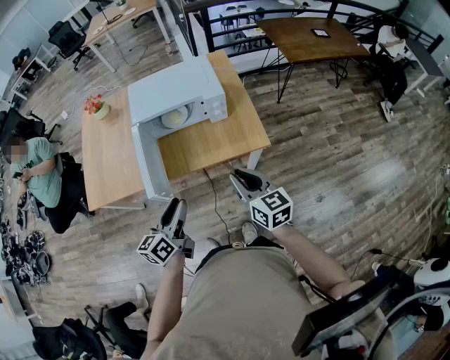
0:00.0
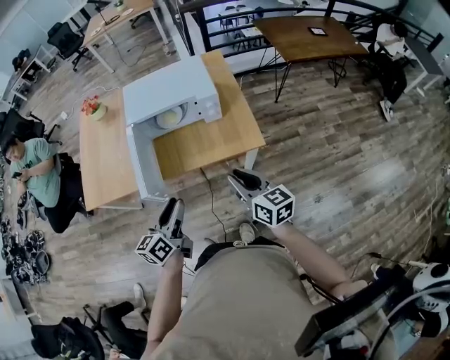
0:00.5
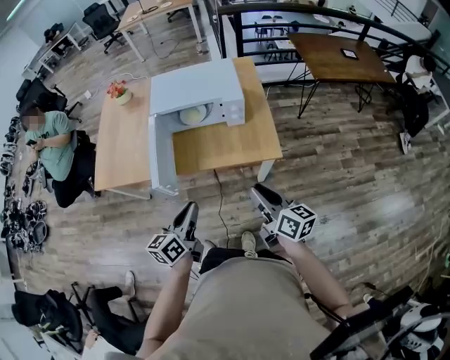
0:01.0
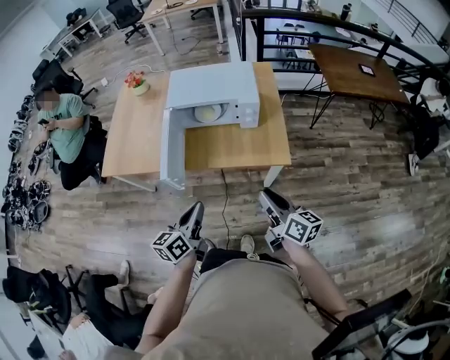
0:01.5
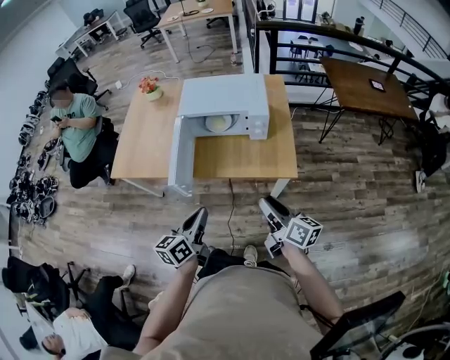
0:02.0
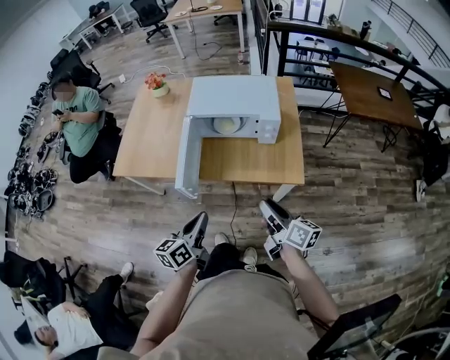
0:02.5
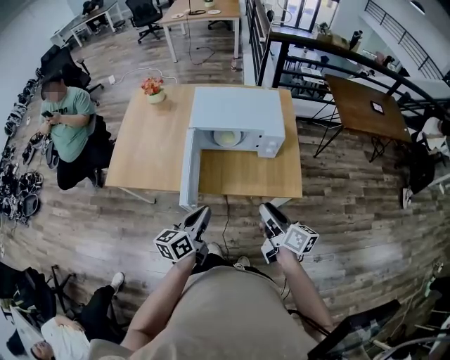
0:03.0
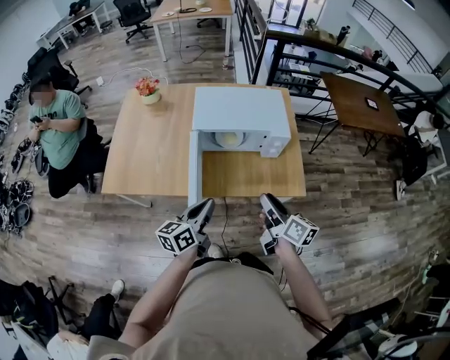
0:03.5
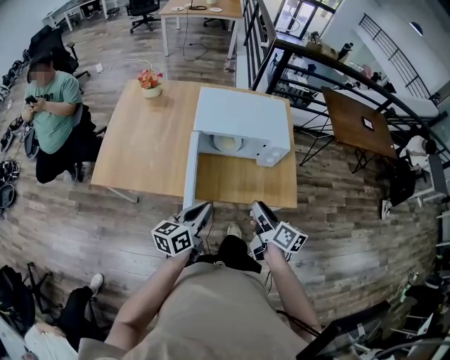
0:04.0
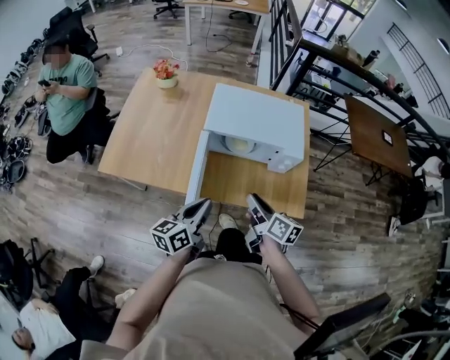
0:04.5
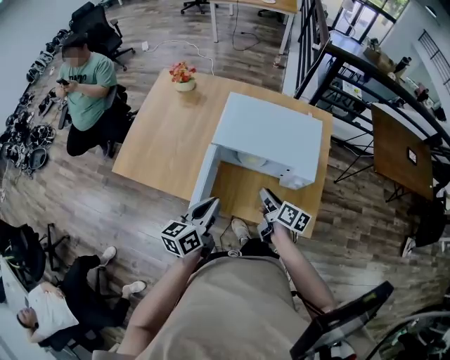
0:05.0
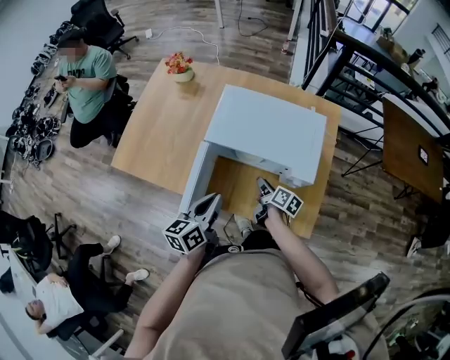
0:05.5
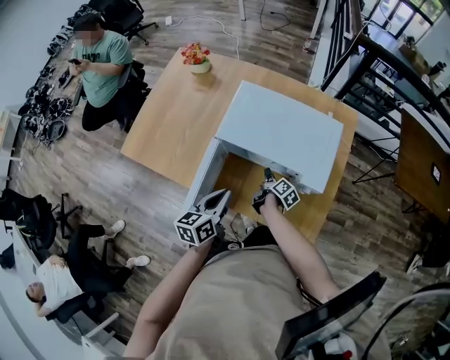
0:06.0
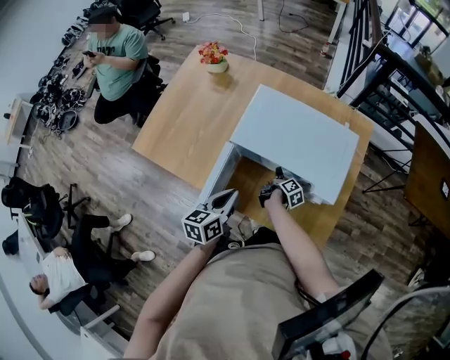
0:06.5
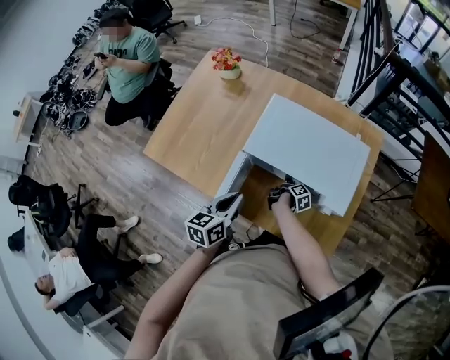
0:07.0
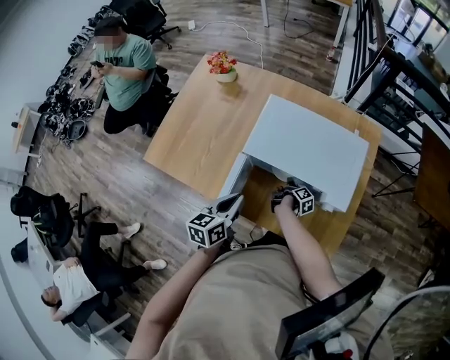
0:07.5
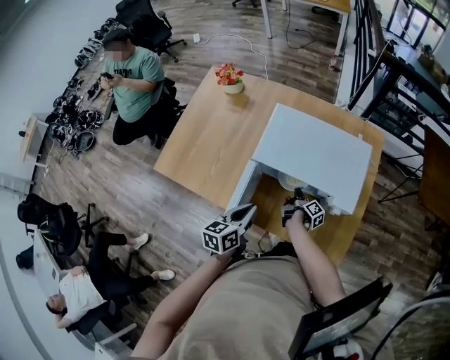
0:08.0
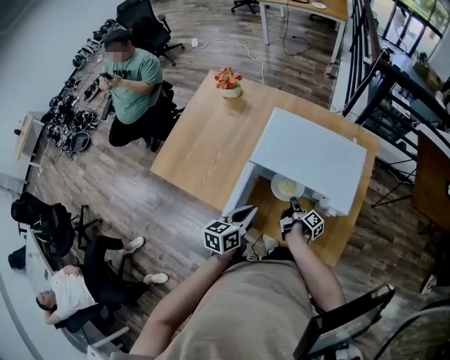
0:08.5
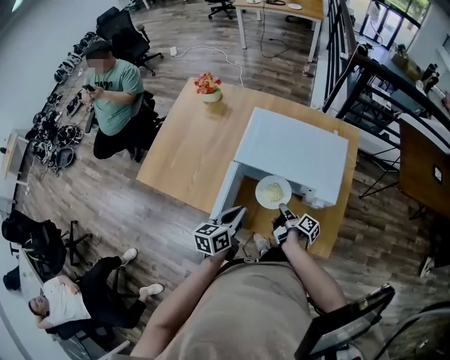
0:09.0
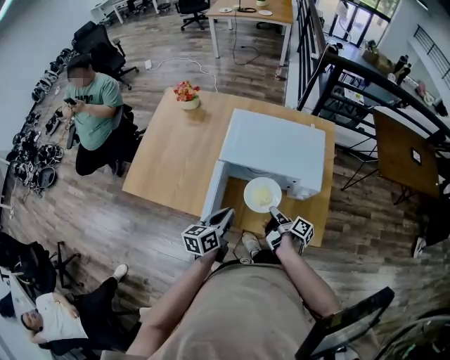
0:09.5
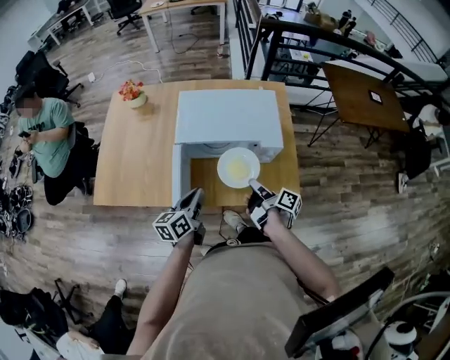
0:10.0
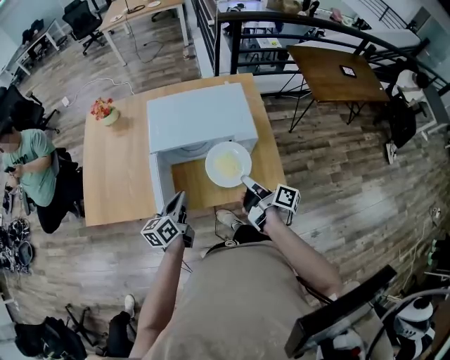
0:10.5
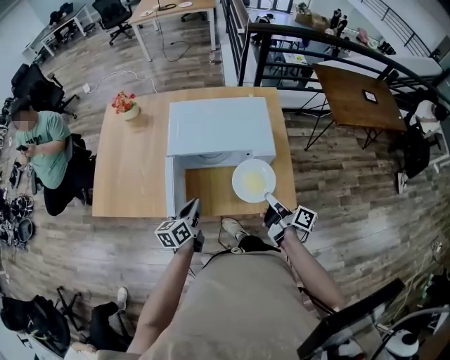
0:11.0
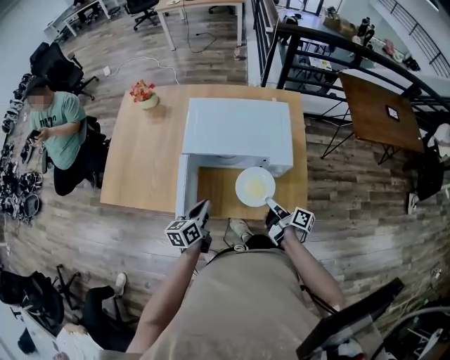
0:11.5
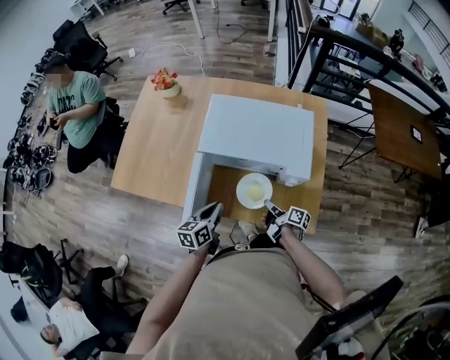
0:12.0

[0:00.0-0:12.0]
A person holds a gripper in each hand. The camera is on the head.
0:00.0 to 0:02.0: The right gripper moves roughly 5 cm, and swivels about 30 degrees; the left gripper moves approximately 5 cm, and closes its fingers.
0:02.0 to 0:04.0: The left gripper is displaced forward and to the left by roughly 20 cm. The right gripper travels to the left and forward by approximately 20 cm.
0:04.0 to 0:06.0: The left gripper moves forward, about 15 cm, and rotates about 30 degrees, while the right gripper moves forward and downward, about 40 cm, and swivels some 30 degrees.
0:06.0 to 0:08.0: The right gripper swivels roughly 20 degrees, and closes.
0:08.0 to 0:10.0: The left gripper goes about 5 cm backward, while the right gripper travels upward and backward by approximately 25 cm.
0:10.0 to 0:12.0: The right gripper goes some 15 cm downward, and rotates roughly 20 degrees, while the left gripper is displaced downward by about 10 cm.

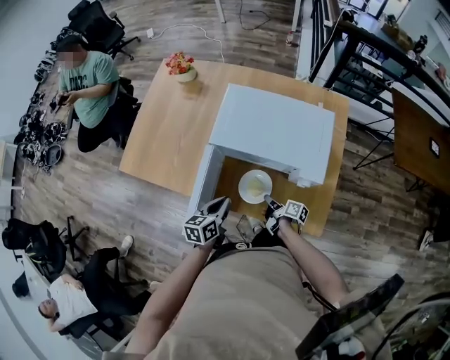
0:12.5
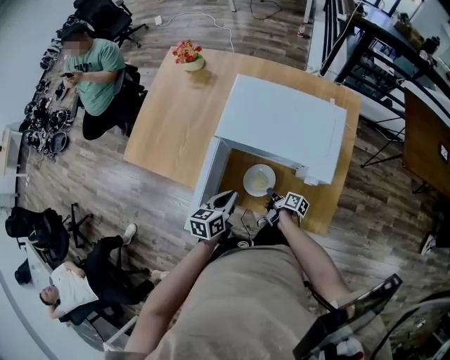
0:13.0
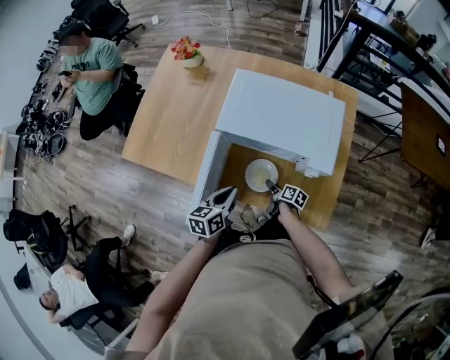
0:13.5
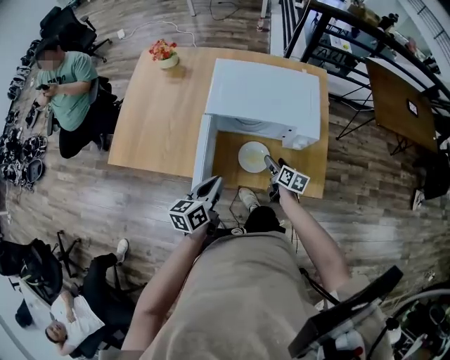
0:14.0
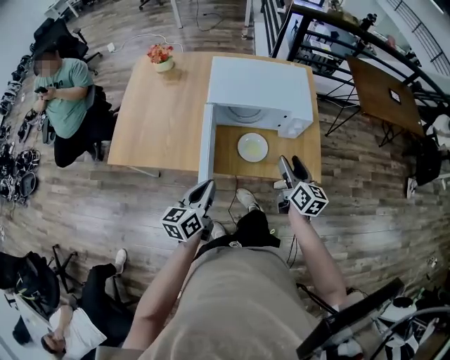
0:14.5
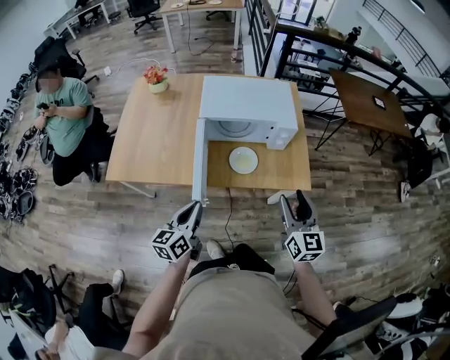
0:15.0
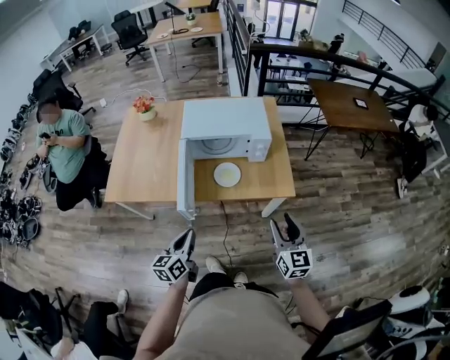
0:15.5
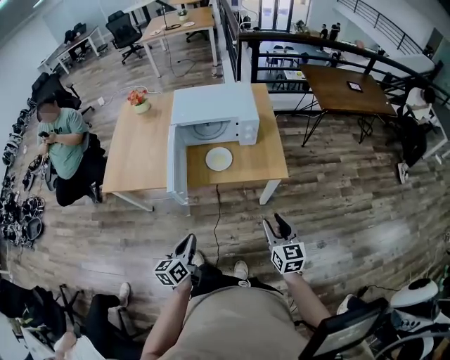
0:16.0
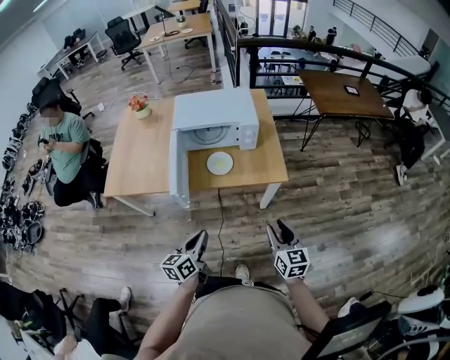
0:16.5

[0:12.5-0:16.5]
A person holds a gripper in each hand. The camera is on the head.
0:12.5 to 0:14.5: The right gripper travels upward and backward by about 30 cm, swivels some 60 degrees, and opens up; the left gripper travels backward, to the left and upward by about 20 cm.
0:14.5 to 0:16.5: Both grippers travel together backward and to the right, some 30 cm.

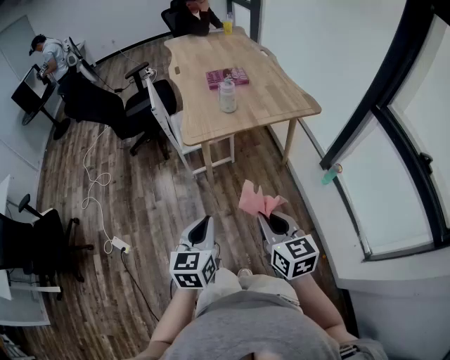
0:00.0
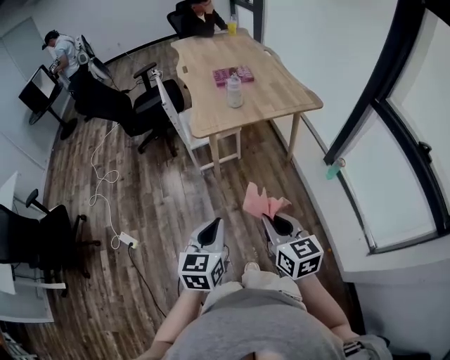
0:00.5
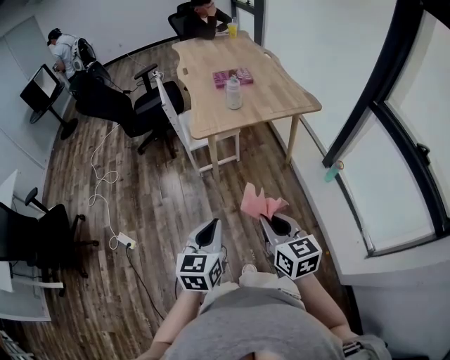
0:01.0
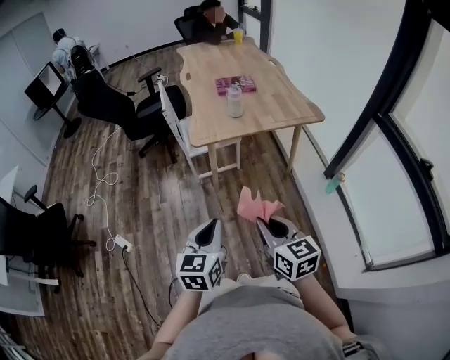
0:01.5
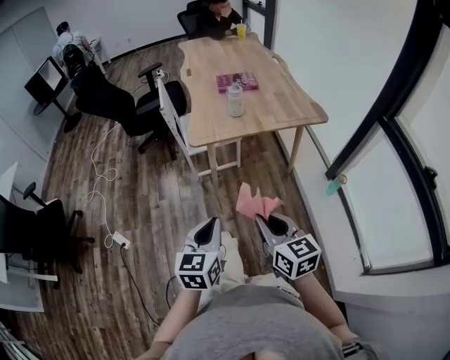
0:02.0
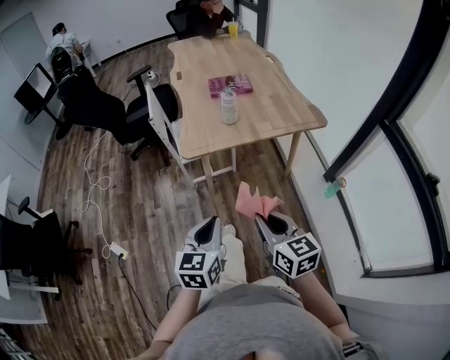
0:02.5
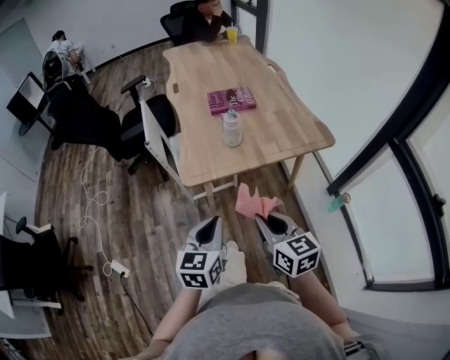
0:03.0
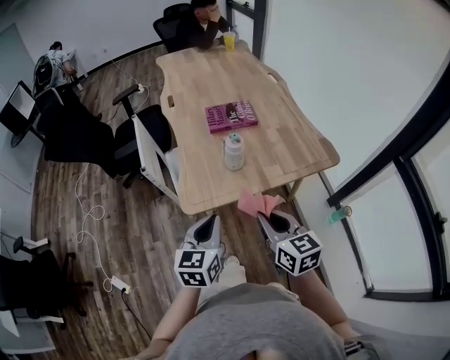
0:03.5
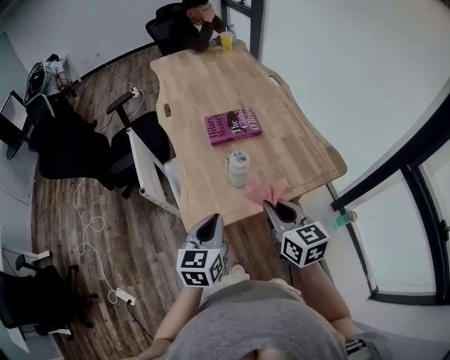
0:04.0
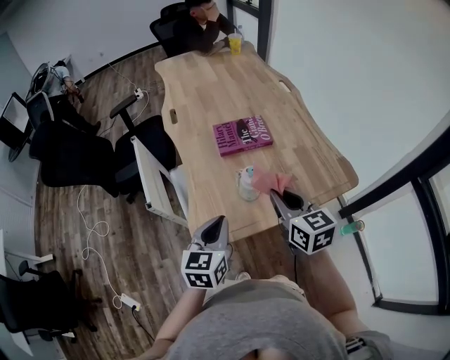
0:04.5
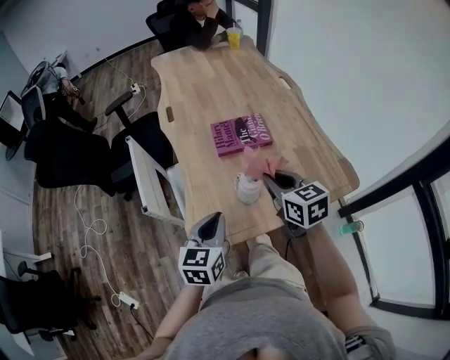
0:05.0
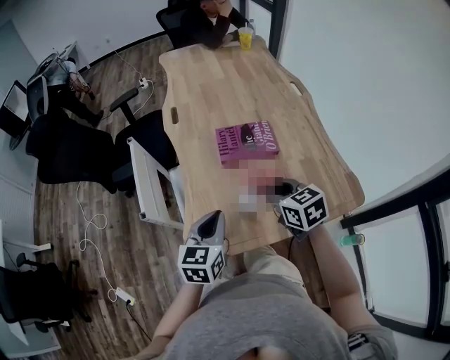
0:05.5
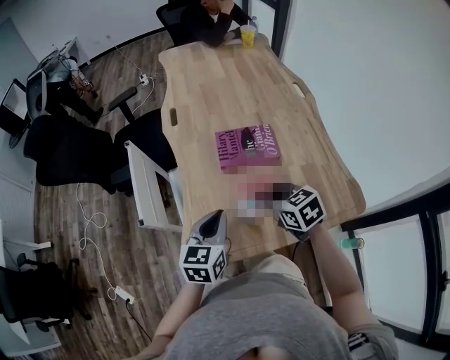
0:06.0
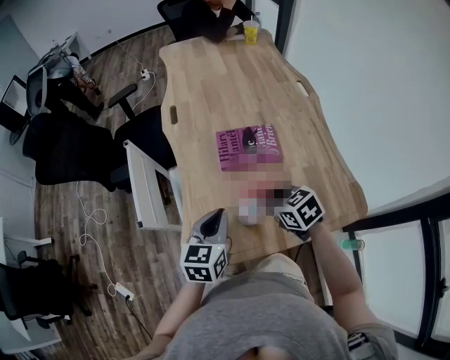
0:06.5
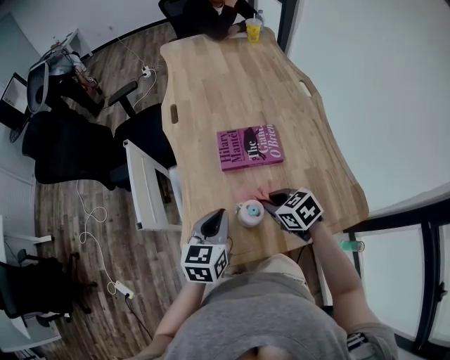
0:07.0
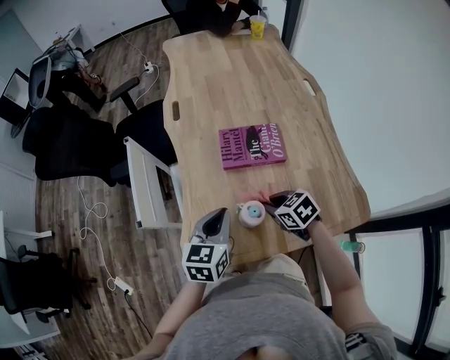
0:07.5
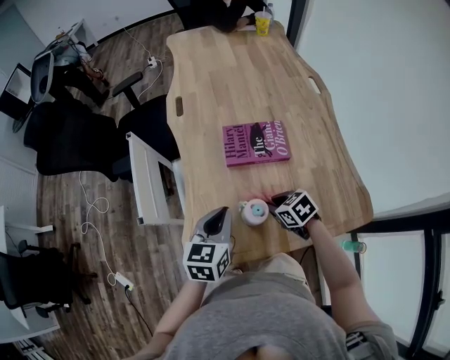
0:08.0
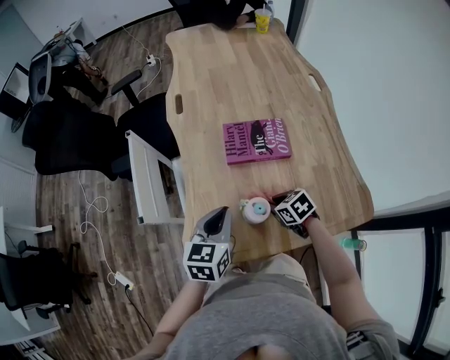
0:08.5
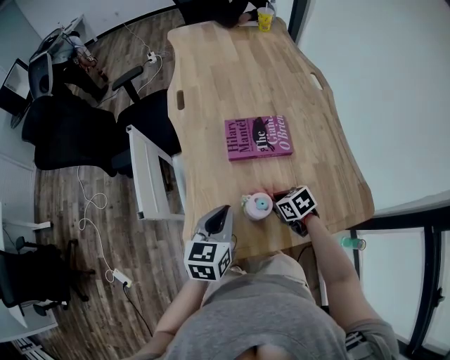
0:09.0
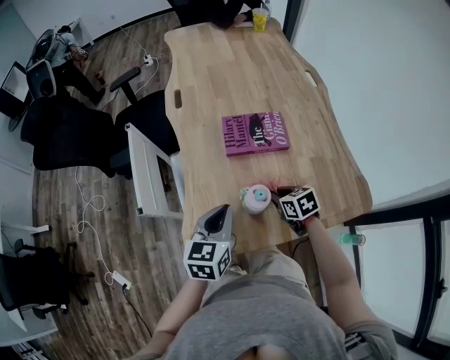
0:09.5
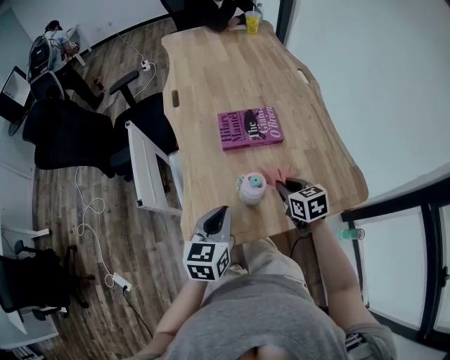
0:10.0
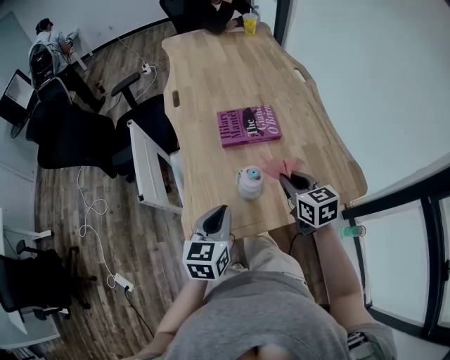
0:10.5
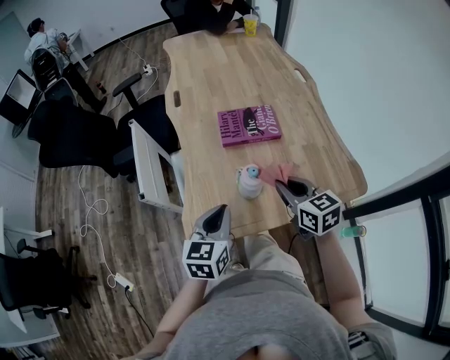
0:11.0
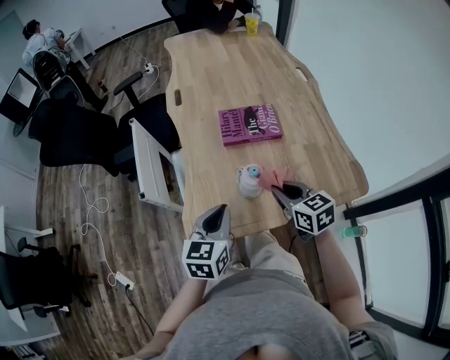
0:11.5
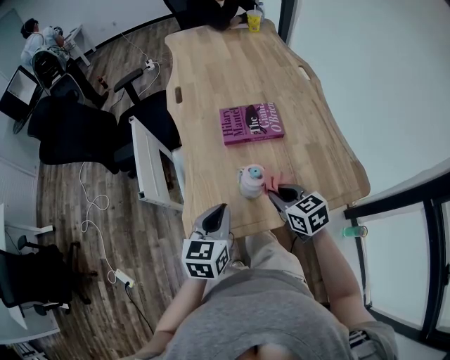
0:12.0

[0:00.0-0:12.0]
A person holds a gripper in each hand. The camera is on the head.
0:00.0 to 0:02.0: The left gripper reaches approximately 10 cm backward, then returns.
0:02.0 to 0:04.0: The two grippers travel together, forward, some 40 cm.
0:04.0 to 0:06.0: Both grippers move forward, about 20 cm. The right gripper turns by some 30 degrees.
0:06.0 to 0:08.0: The right gripper heads downward, covering approximately 15 cm.
0:08.0 to 0:10.0: The left gripper travels backward by about 5 cm. The right gripper shifts approximately 5 cm upward, and swivels some 30 degrees.
0:10.0 to 0:12.0: The right gripper shifts some 5 cm backward.
